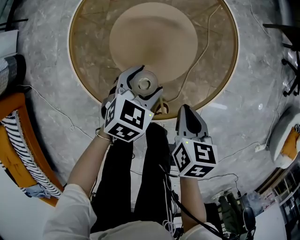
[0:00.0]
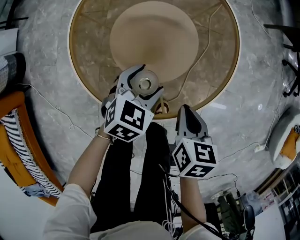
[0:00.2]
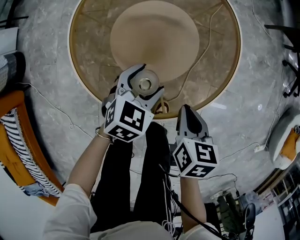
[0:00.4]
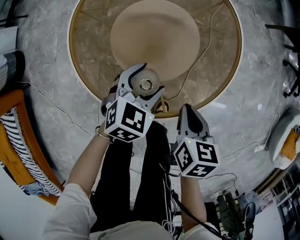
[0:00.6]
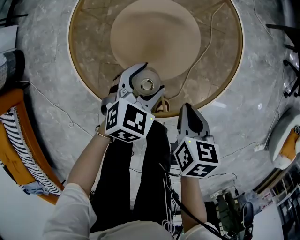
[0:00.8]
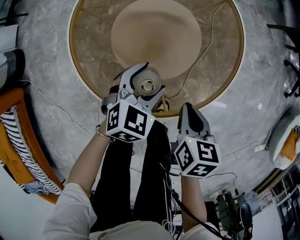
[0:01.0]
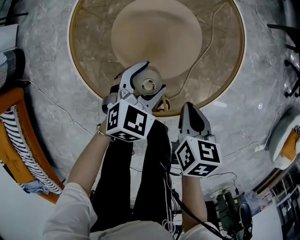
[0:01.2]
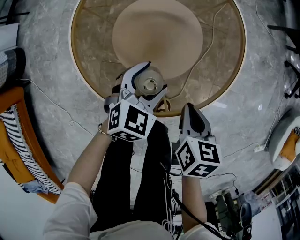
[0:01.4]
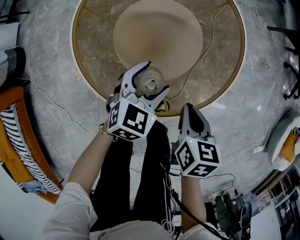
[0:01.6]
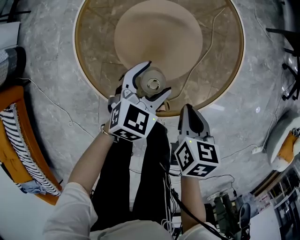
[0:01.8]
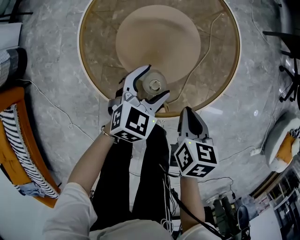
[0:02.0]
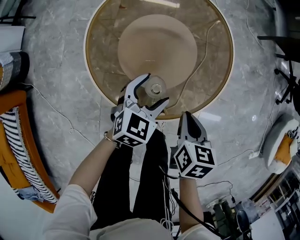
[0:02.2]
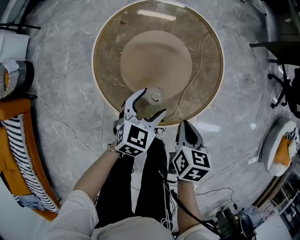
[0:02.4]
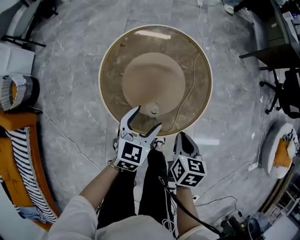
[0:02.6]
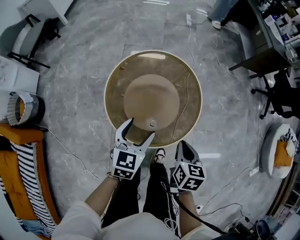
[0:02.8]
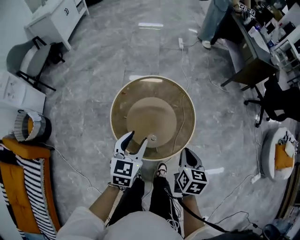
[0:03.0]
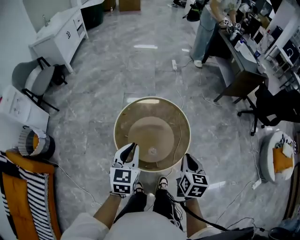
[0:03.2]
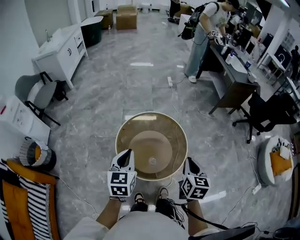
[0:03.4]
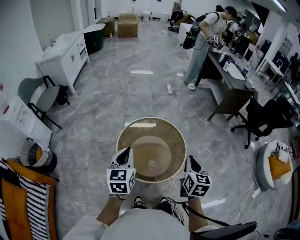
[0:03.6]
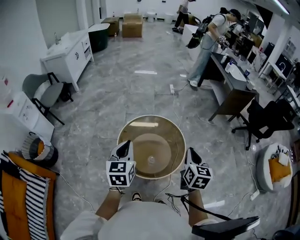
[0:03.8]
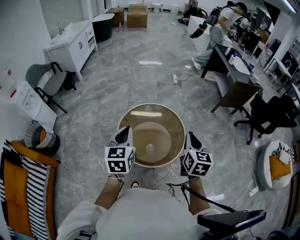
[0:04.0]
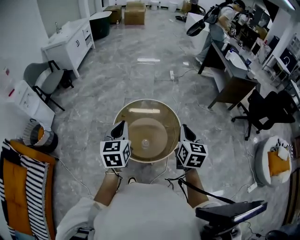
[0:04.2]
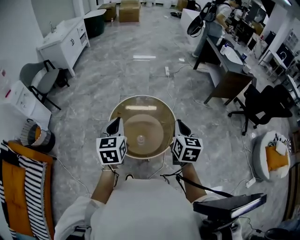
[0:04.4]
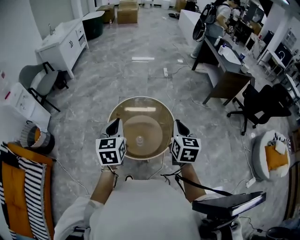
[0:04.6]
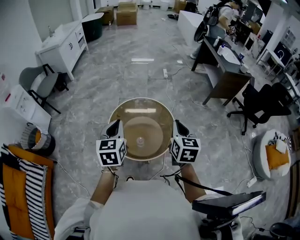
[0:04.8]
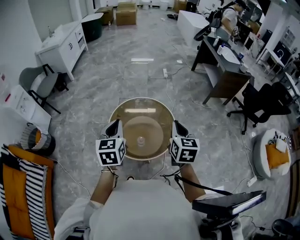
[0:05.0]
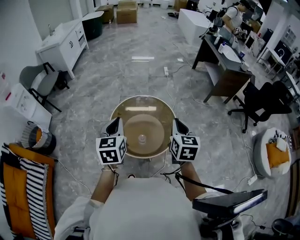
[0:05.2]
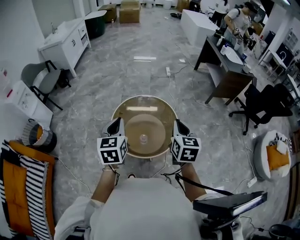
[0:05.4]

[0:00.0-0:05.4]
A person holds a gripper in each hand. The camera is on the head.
0:00.0 to 0:01.4: The grippers move only a little.
0:01.4 to 0:02.8: Both grippers travel together upward, approximately 20 cm. The left gripper rotates roughly 20 degrees.
0:02.8 to 0:04.0: Both grippers travel together upward, approximately 30 cm. The right gripper turns by about 30 degrees. The left gripper changes its angle by roughly 20 degrees, and closes its fingers.
0:04.0 to 0:05.4: The grippers stay close to where they were, moving slightly.

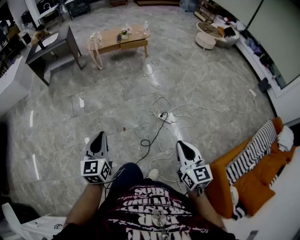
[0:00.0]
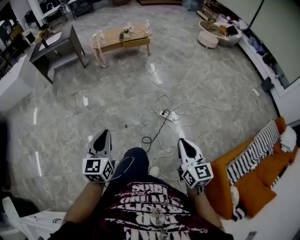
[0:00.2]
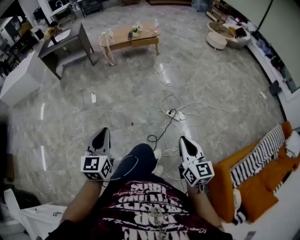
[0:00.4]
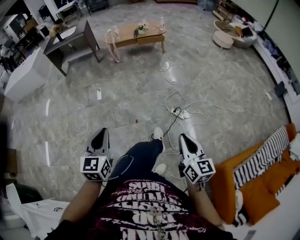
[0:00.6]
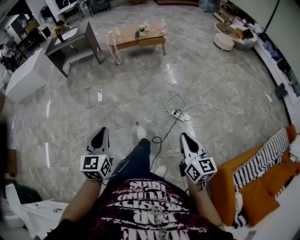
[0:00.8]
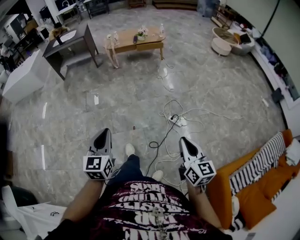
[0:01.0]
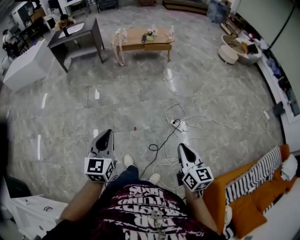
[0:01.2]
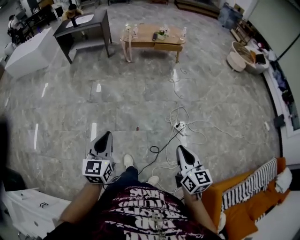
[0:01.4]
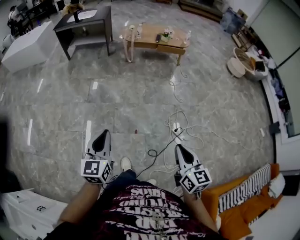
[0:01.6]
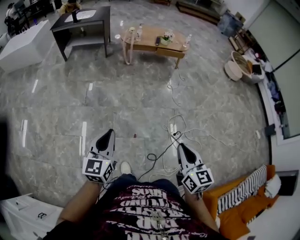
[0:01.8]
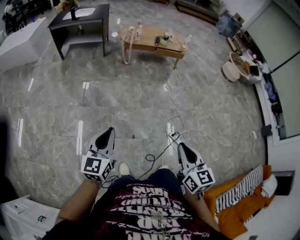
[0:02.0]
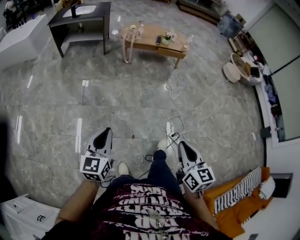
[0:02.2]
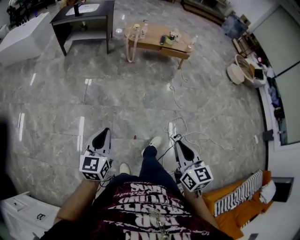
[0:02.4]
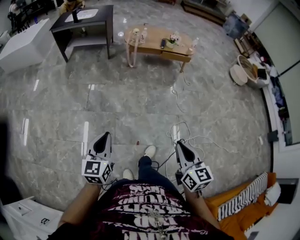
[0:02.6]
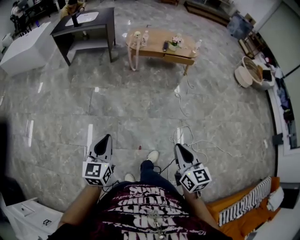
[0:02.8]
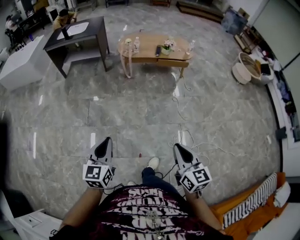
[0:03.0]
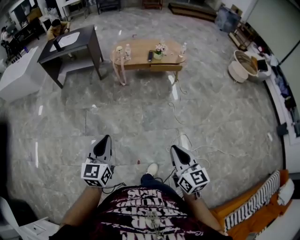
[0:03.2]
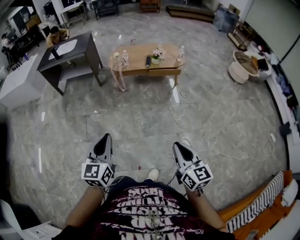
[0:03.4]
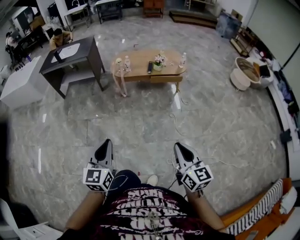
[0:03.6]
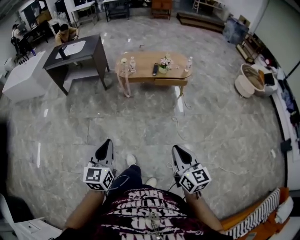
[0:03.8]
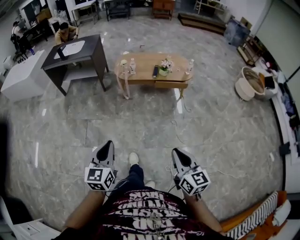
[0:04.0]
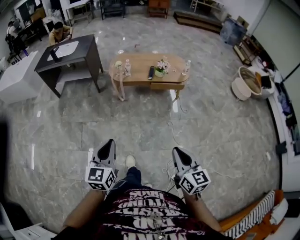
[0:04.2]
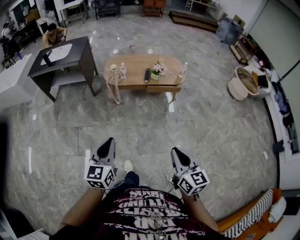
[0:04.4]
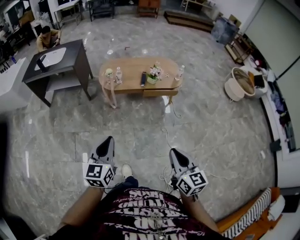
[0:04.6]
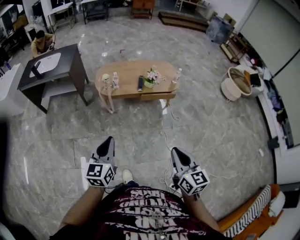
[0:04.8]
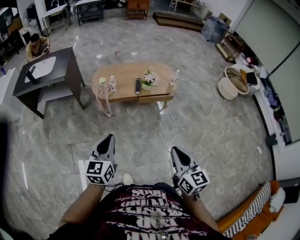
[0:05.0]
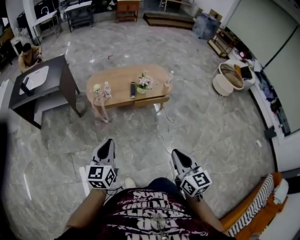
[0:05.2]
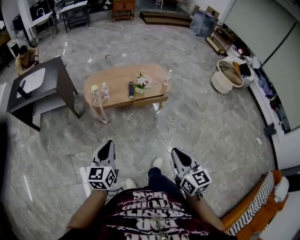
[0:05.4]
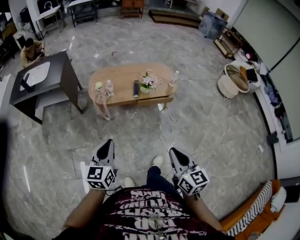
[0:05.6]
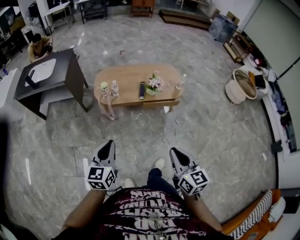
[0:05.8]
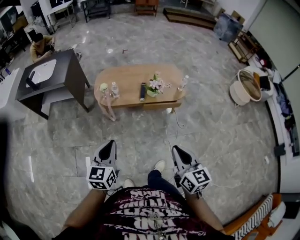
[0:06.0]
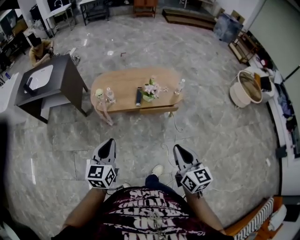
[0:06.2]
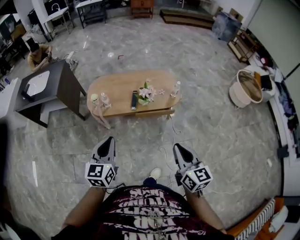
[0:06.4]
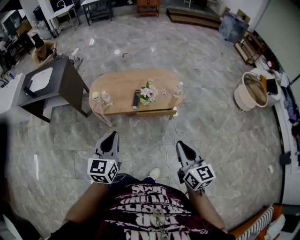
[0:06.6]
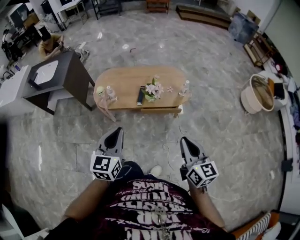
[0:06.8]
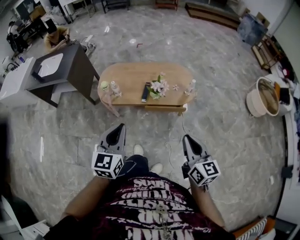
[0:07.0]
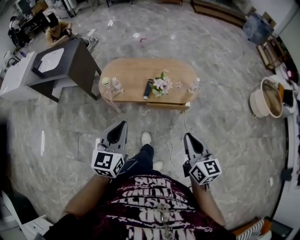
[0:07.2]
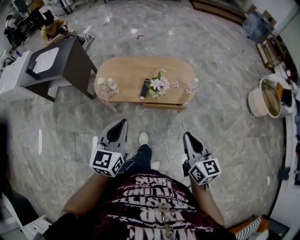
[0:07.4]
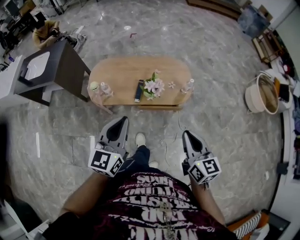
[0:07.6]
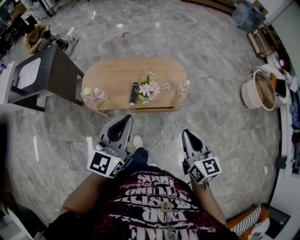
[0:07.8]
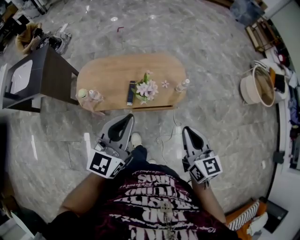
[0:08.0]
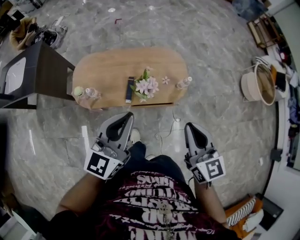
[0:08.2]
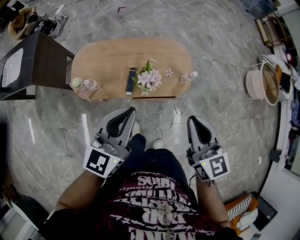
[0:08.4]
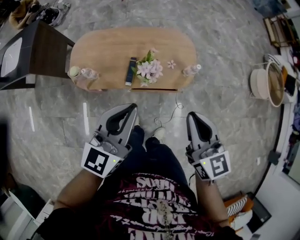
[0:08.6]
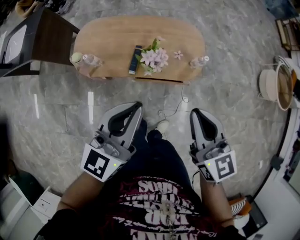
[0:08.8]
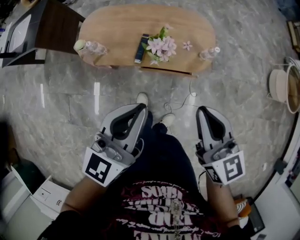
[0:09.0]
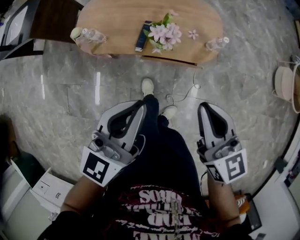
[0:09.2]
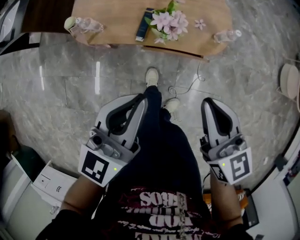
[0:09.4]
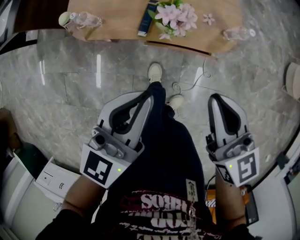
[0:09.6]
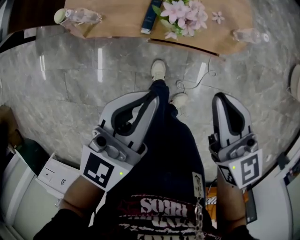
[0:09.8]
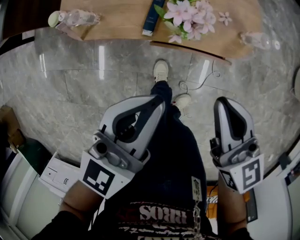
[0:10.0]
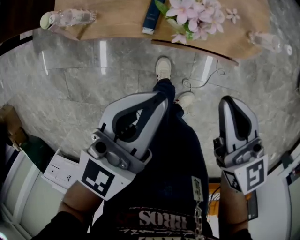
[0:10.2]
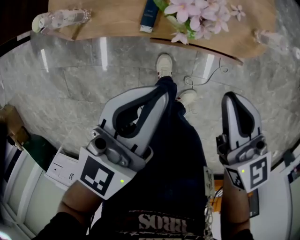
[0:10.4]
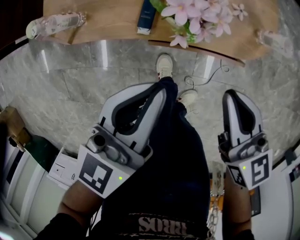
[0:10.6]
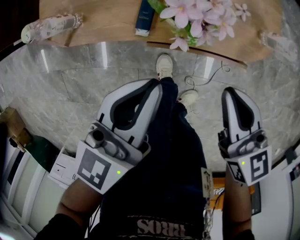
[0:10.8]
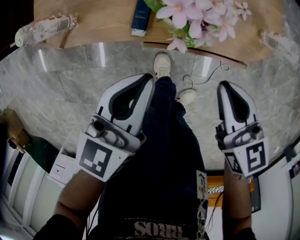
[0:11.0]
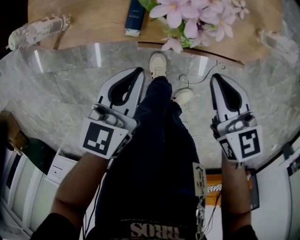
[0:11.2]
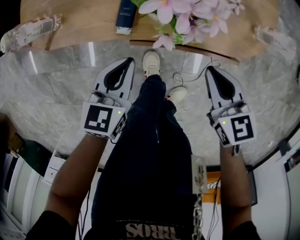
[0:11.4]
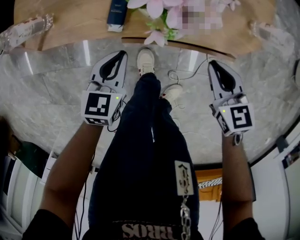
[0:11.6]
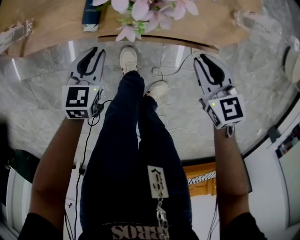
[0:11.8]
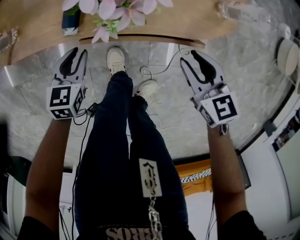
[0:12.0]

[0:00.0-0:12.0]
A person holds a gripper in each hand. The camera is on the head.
0:00.0 to 0:01.6: The left gripper moves to the left and forward, some 15 cm; the right gripper moves forward and to the left, approximately 20 cm.
0:01.6 to 0:03.0: The grippers both shift forward by roughly 25 cm.
0:03.0 to 0:04.4: The left gripper travels forward and to the right by about 30 cm; the right gripper is displaced forward by some 25 cm.
0:04.4 to 0:06.0: The two grippers go some 25 cm forward.
0:06.0 to 0:07.6: Both grippers travel together forward and to the right, some 30 cm.
0:07.6 to 0:09.0: The right gripper is displaced forward by about 15 cm. Meanwhile the left gripper heads to the right, forward and downward, covering approximately 15 cm.
0:09.0 to 0:10.4: The two grippers go some 25 cm downward.
0:10.4 to 0:12.0: The left gripper is displaced downward by roughly 35 cm, tilts its fingers roughly 30 degrees downward, and opens. The right gripper moves downward and to the right, approximately 25 cm, rotates some 20 degrees, and opens up.

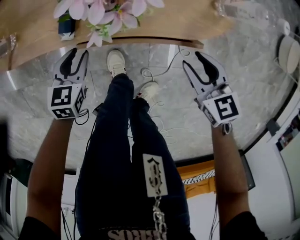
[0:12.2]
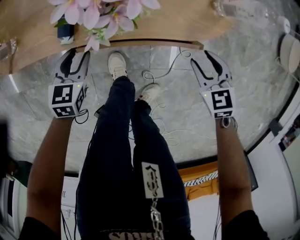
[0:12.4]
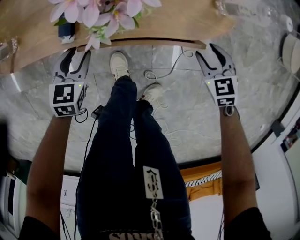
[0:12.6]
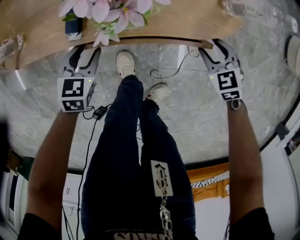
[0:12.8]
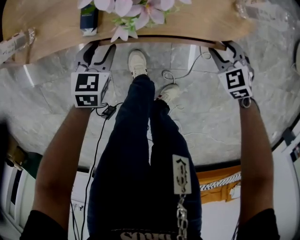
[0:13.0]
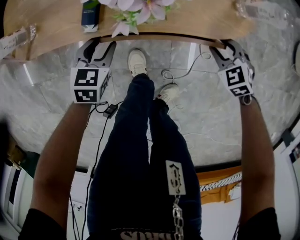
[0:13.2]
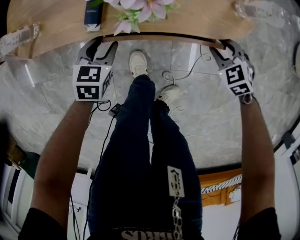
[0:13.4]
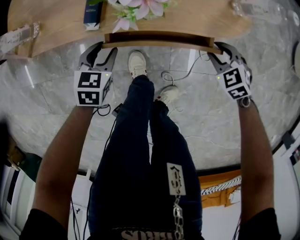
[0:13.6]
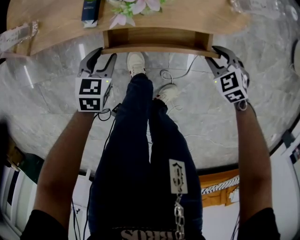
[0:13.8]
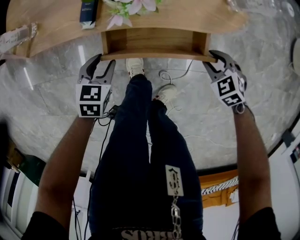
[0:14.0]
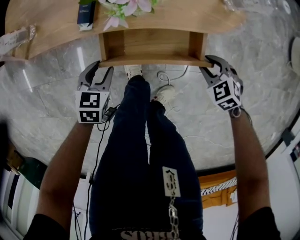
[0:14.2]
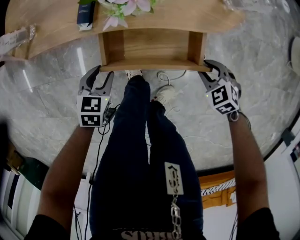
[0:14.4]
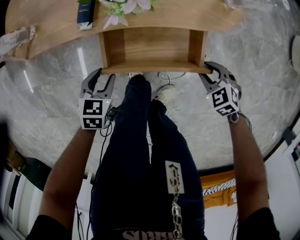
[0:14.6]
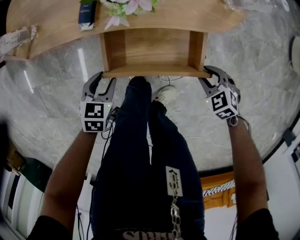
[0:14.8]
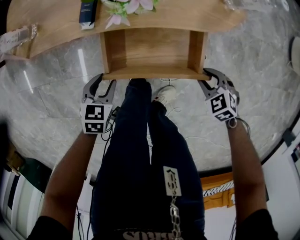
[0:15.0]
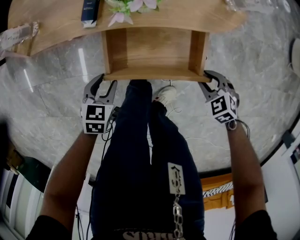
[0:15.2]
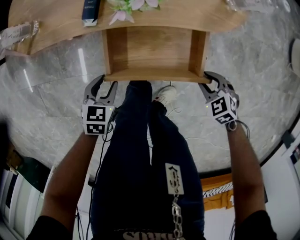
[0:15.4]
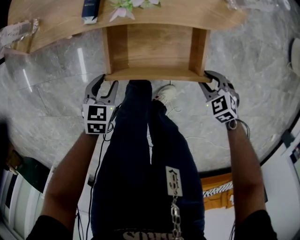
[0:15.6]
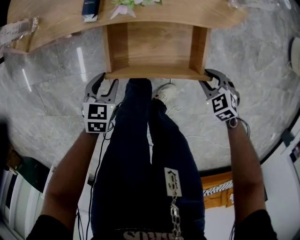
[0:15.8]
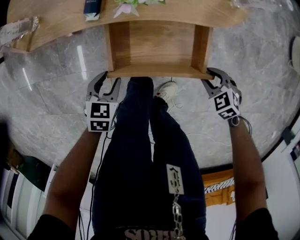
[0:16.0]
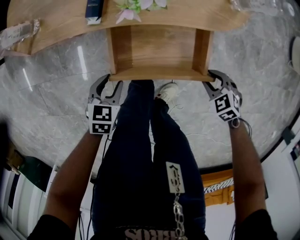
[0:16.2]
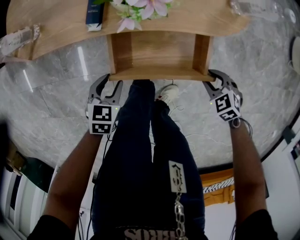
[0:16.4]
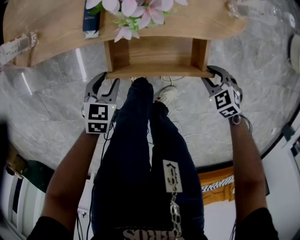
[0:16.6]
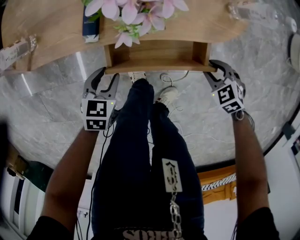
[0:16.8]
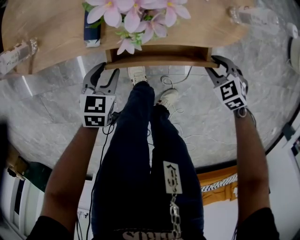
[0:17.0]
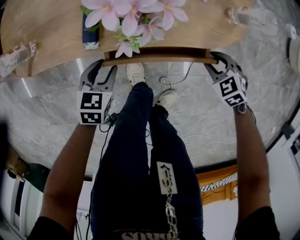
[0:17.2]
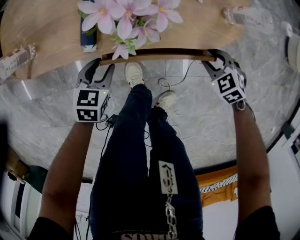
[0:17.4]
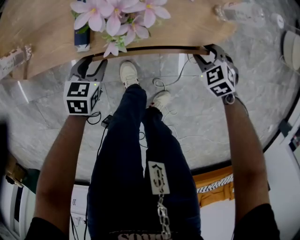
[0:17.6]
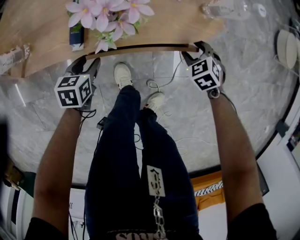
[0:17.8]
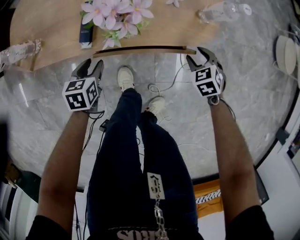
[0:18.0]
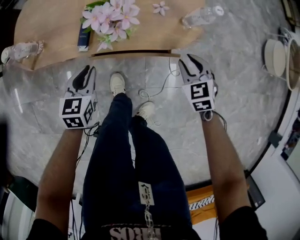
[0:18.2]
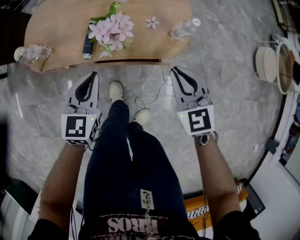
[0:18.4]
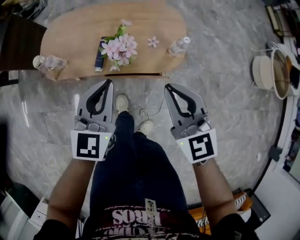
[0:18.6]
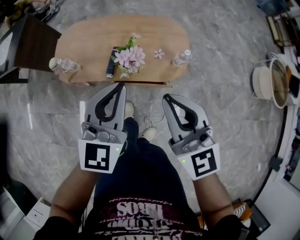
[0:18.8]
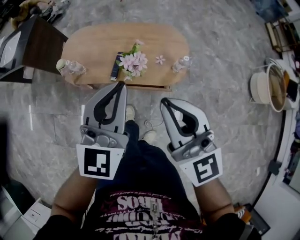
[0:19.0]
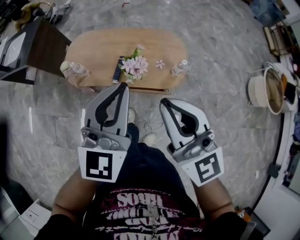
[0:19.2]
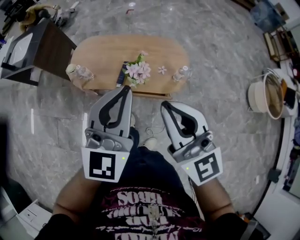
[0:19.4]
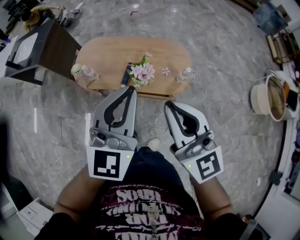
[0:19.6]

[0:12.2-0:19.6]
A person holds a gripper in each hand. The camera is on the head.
0:12.2 to 0:13.6: The right gripper moves downward, approximately 10 cm, and swivels about 30 degrees.
0:13.6 to 0:15.2: The two grippers go roughly 10 cm backward.
0:15.2 to 0:16.6: There are only small adjustments of the grippers.
0:16.6 to 0:18.2: The two grippers go about 15 cm upward and forward. The right gripper changes its angle by some 30 degrees; the left gripper rotates approximately 20 degrees, and closes.
0:18.2 to 0:19.6: The grippers both shift upward by roughly 60 cm. The right gripper points its fingers about 60 degrees further upward, and closes up; the left gripper angles its fingers upward, by approximately 40 degrees.
